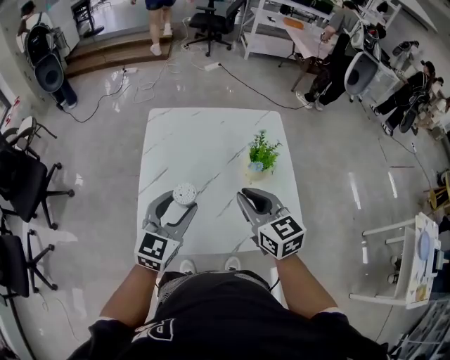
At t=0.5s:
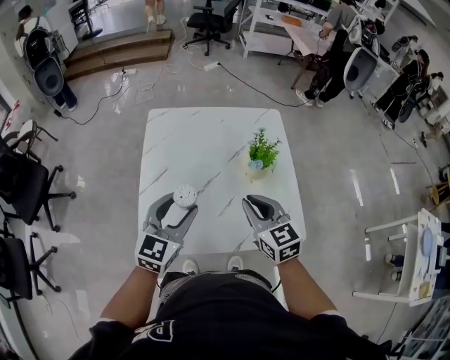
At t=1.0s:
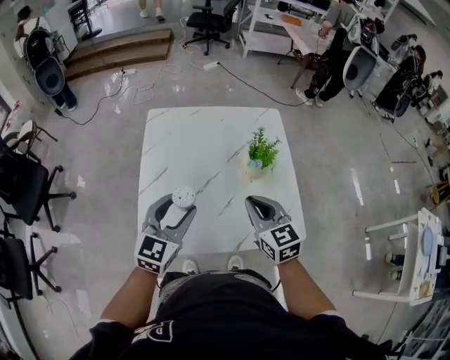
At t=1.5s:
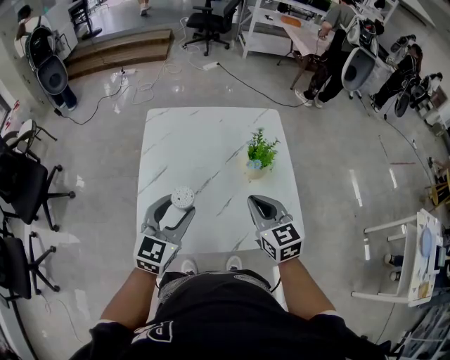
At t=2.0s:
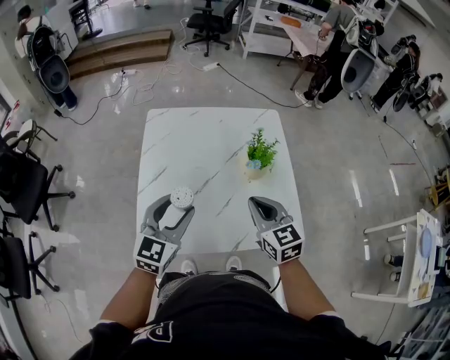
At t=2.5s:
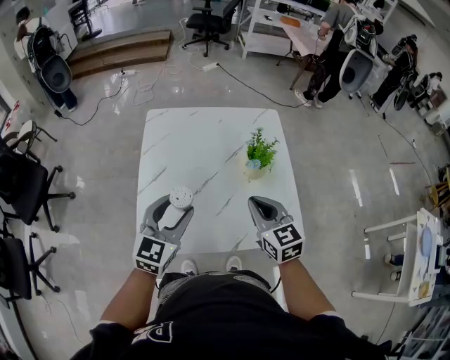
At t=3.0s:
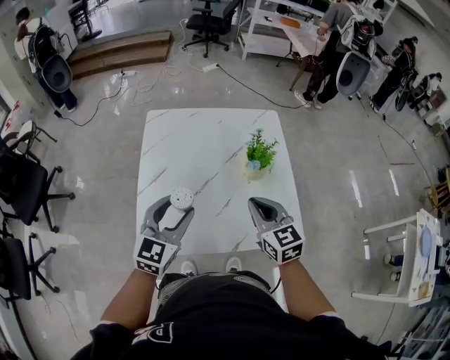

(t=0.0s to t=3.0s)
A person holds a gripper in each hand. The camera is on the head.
t=0.0s - t=1.5s: The right gripper moves approximately 5 cm.
t=1.5s - t=3.0s: Both grippers stay put.

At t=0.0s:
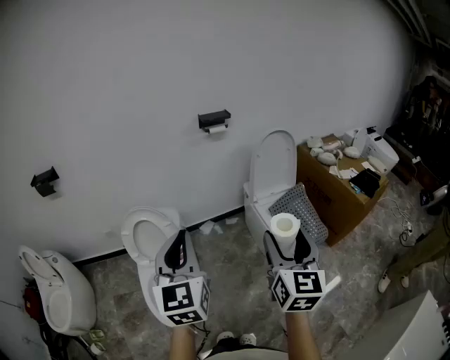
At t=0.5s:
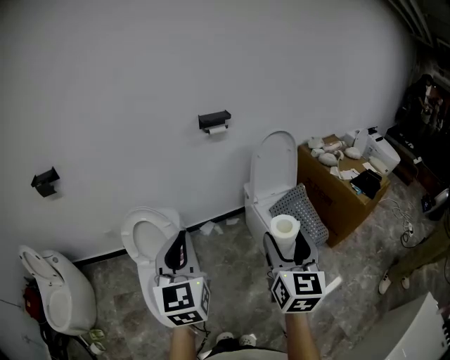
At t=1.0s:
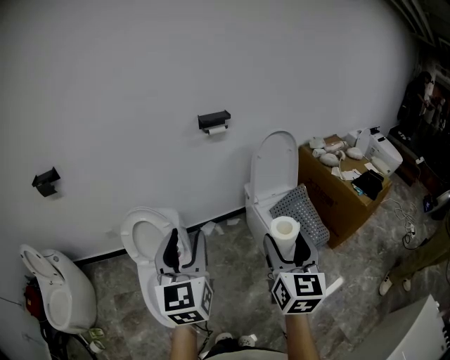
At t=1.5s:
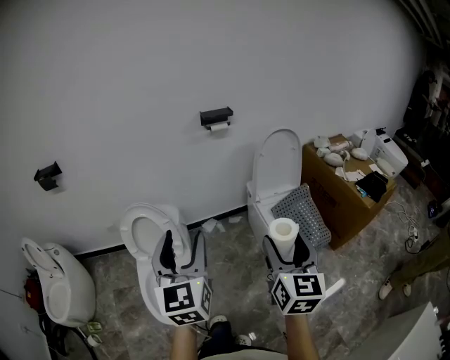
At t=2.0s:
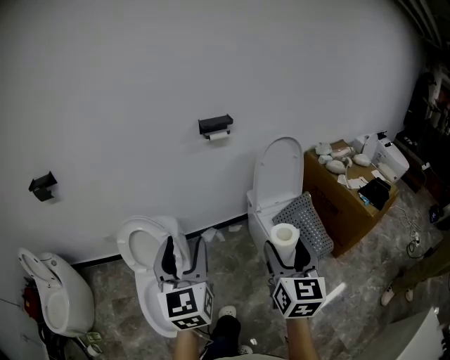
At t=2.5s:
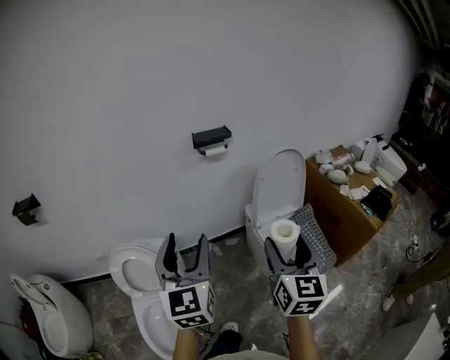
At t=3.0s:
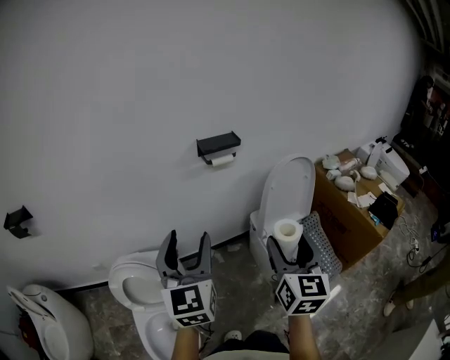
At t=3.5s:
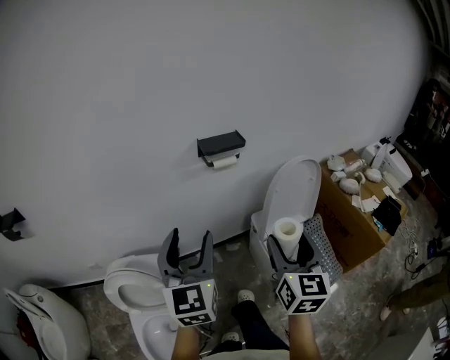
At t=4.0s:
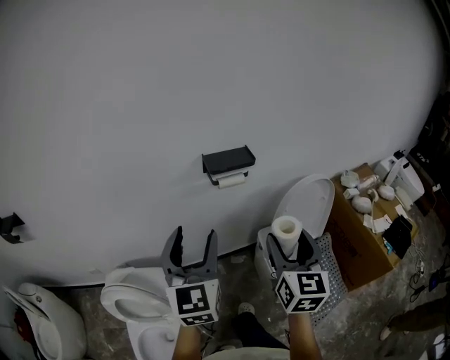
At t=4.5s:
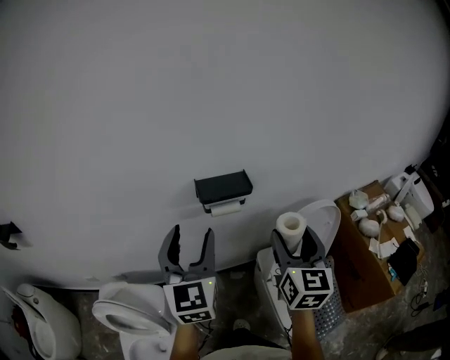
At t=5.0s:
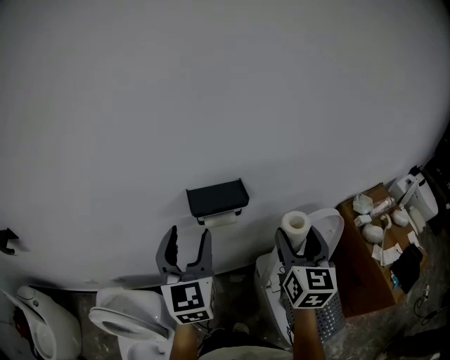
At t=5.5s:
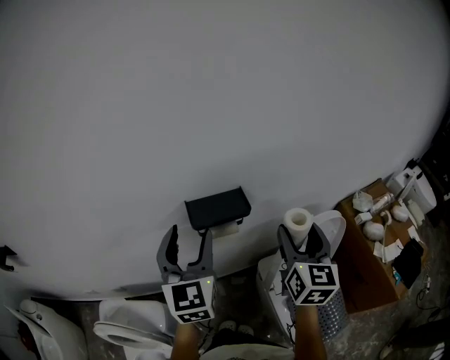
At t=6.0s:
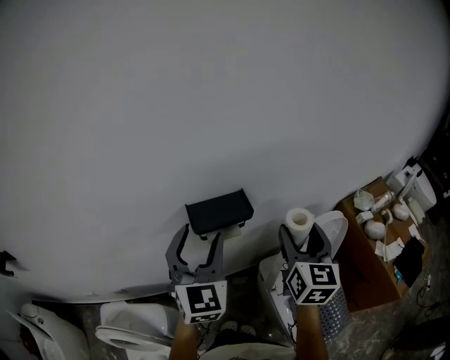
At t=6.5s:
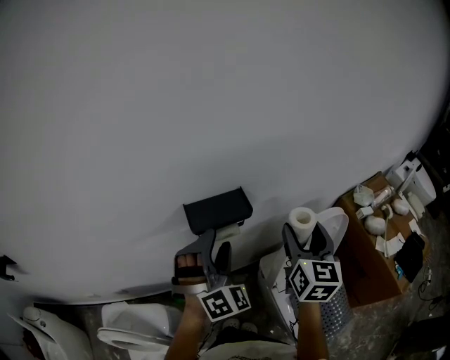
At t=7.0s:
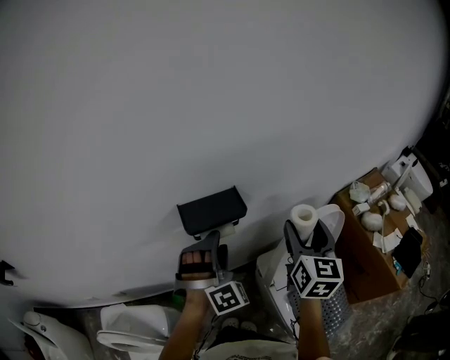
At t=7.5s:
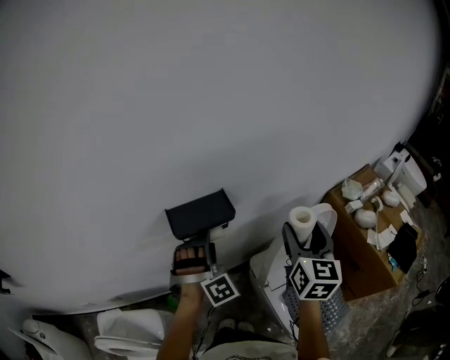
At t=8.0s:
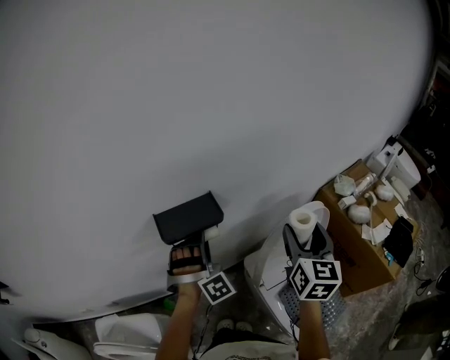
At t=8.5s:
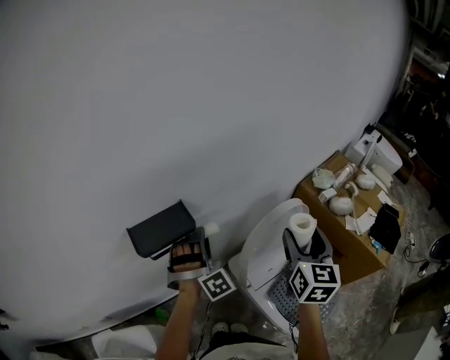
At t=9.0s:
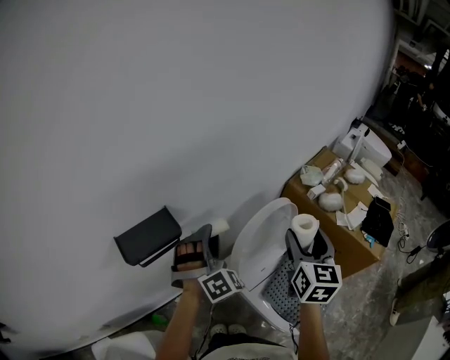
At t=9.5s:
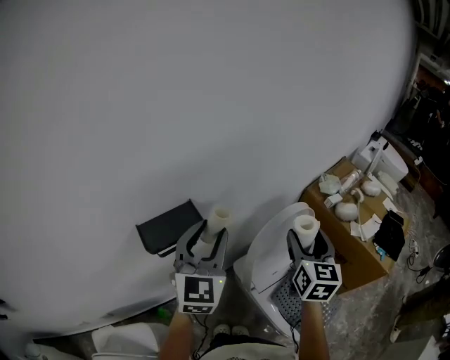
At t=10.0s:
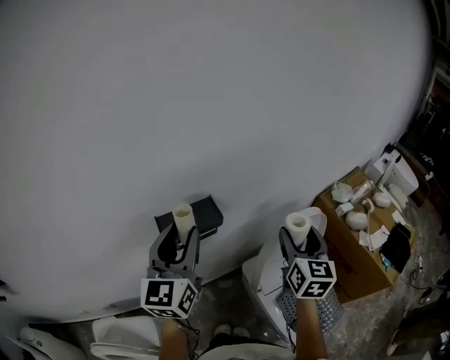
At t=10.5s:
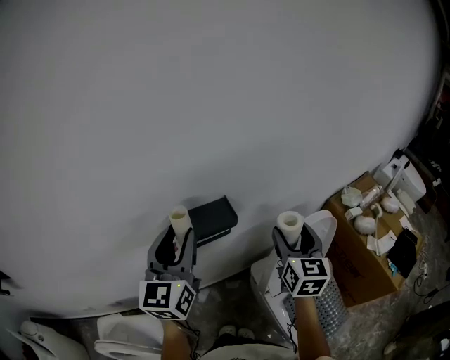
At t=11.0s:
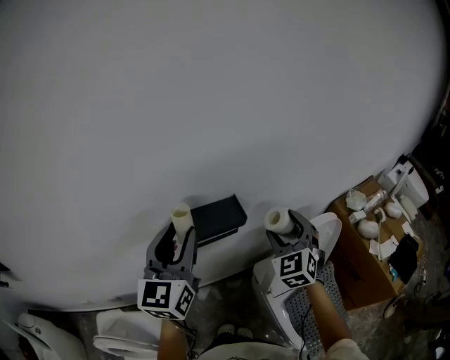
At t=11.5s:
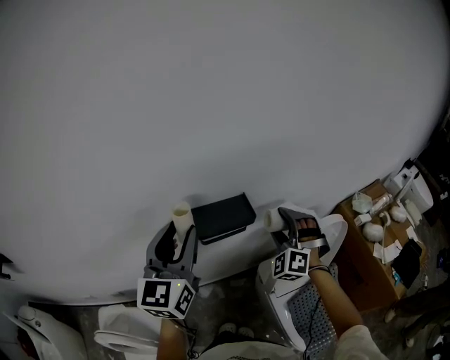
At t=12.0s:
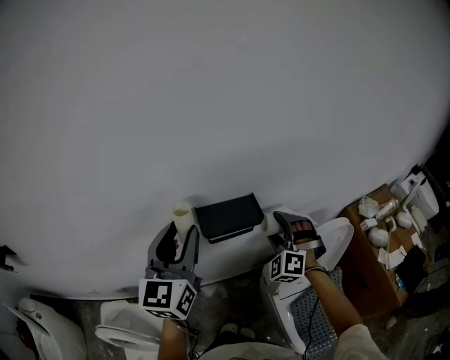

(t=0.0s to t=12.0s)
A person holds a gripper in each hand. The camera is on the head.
t=0.0s - t=2.0s: The grippers both shift forward by approximately 5 cm. The left gripper opens its fingers.
t=2.0s - t=4.0s: The two grippers travel together, forward, some 40 cm.
t=4.0s - t=6.0s: The grippers both shift forward by about 25 cm.
t=6.0s - t=8.0s: The right gripper heads to the right, covering some 10 cm. Meanwhile the left gripper shifts approximately 20 cm downward, to the right and forward, and twists some 60 degrees clockwise, seen from behind.
t=8.0s - t=10.0s: The right gripper travels to the right and back again, some 10 cm each way. The left gripper goes about 15 cm upward, moves approximately 15 cm to the right and comes back, and twists some 80 degrees counterclockwise, seen from behind.
t=10.0s - t=12.0s: The left gripper moves to the left, approximately 10 cm. Meanwhile the right gripper travels to the left and downward by about 20 cm, and rolls counterclockwise, seen from behind, by about 80 degrees.

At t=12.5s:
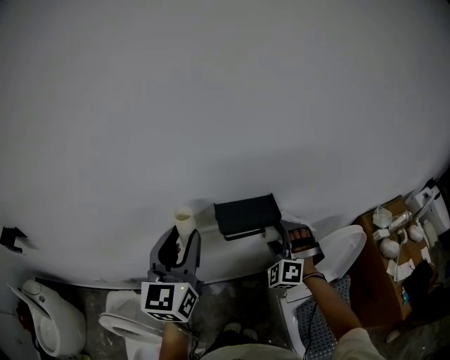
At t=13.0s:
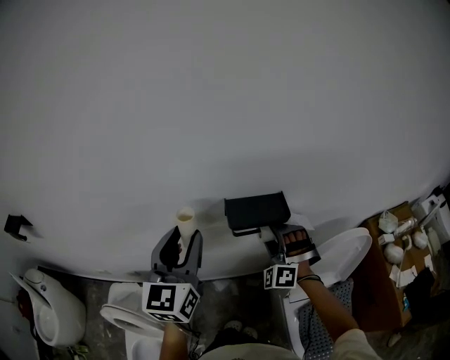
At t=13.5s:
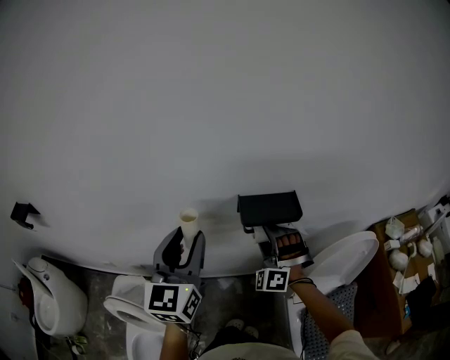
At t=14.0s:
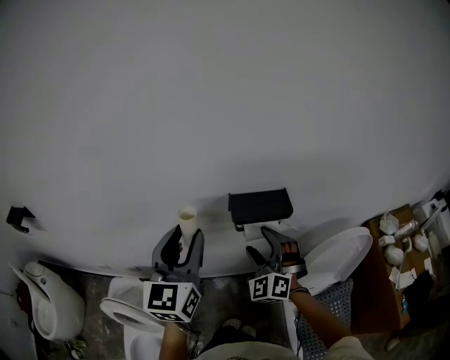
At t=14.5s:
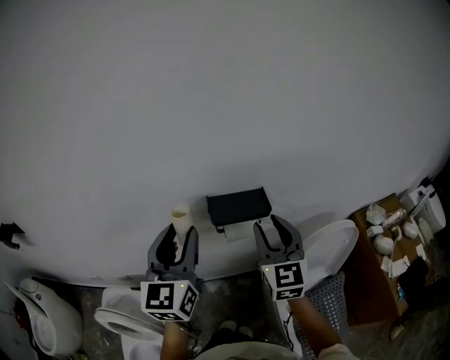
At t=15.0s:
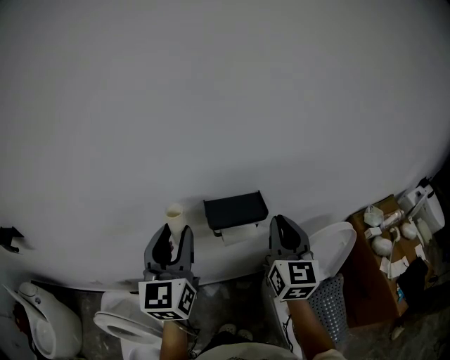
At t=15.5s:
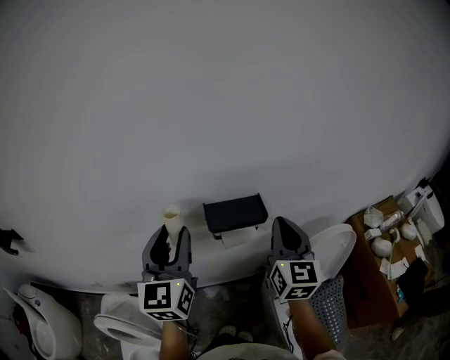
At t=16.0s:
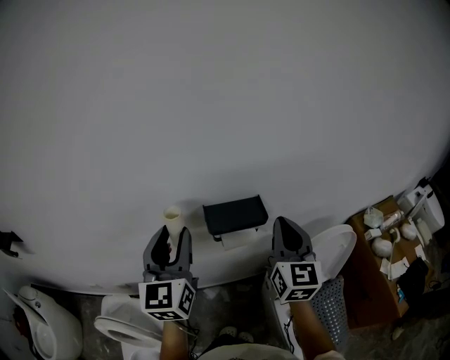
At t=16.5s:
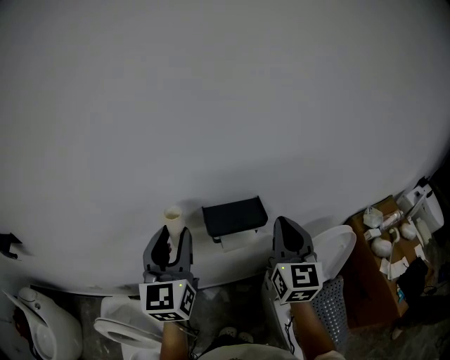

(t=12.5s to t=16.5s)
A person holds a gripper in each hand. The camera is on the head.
t=12.5s - t=14.5s: The right gripper moves upward and backward, some 15 cm, rolls clockwise, seen from behind, by some 60 degrees, and closes its fingers.
t=14.5s - t=16.5s: The right gripper shifts by some 5 cm, and closes its fingers.

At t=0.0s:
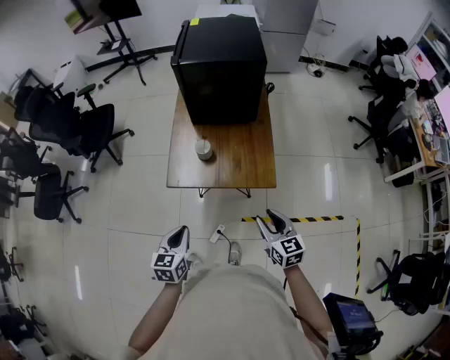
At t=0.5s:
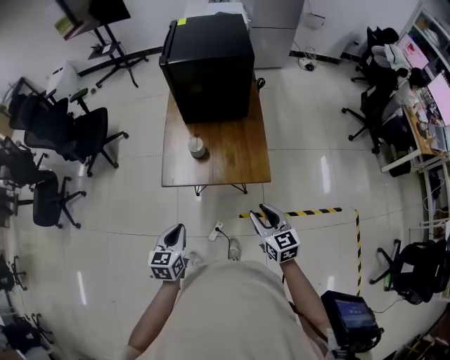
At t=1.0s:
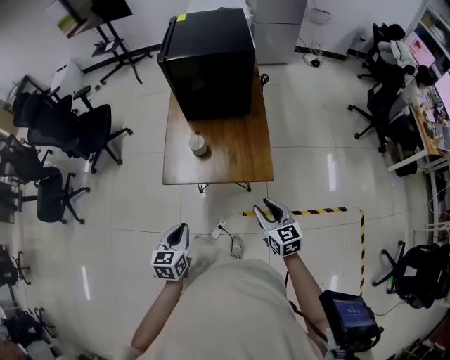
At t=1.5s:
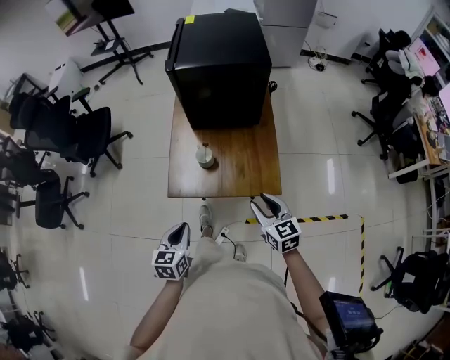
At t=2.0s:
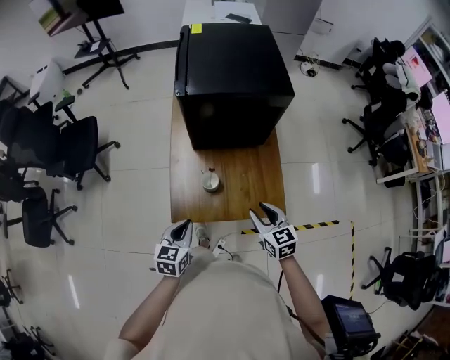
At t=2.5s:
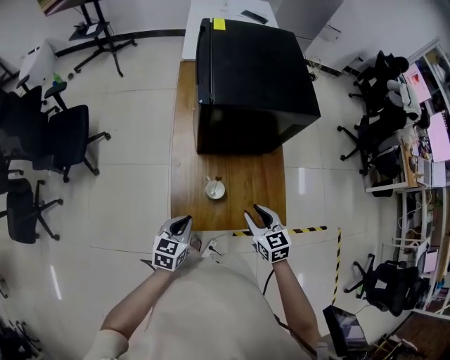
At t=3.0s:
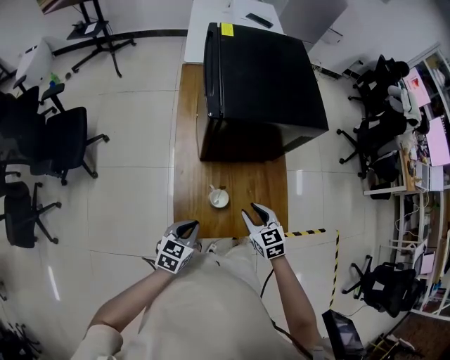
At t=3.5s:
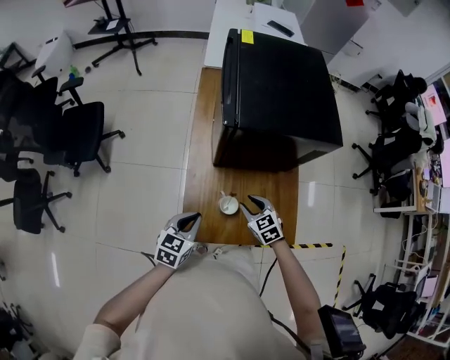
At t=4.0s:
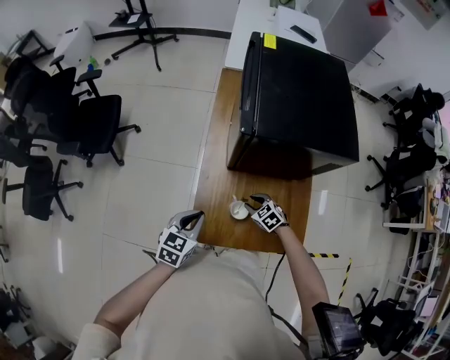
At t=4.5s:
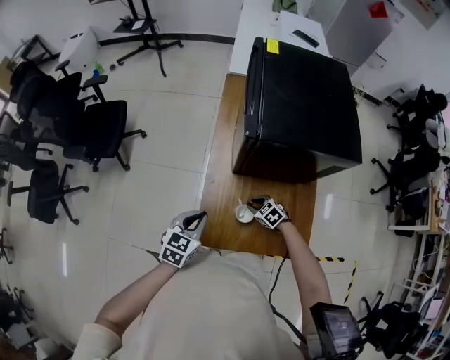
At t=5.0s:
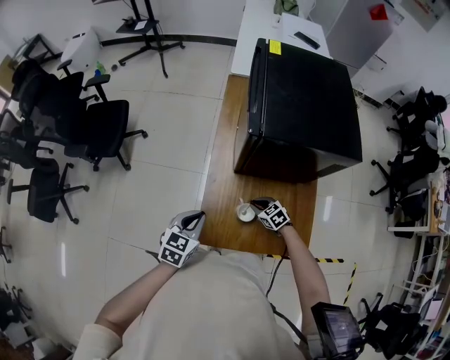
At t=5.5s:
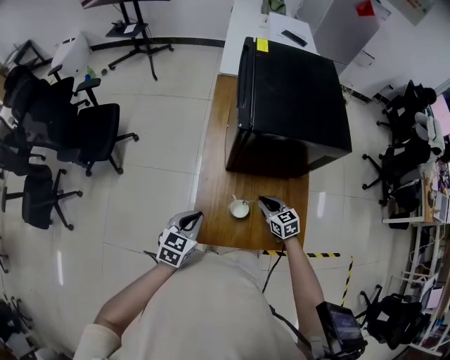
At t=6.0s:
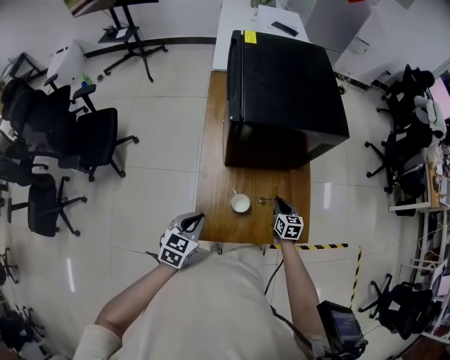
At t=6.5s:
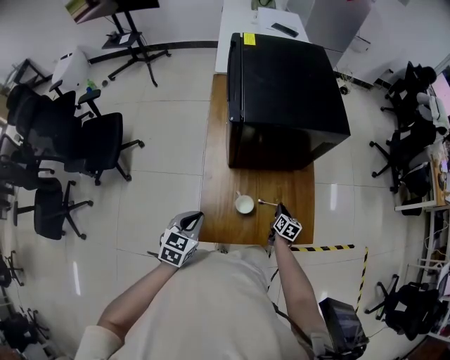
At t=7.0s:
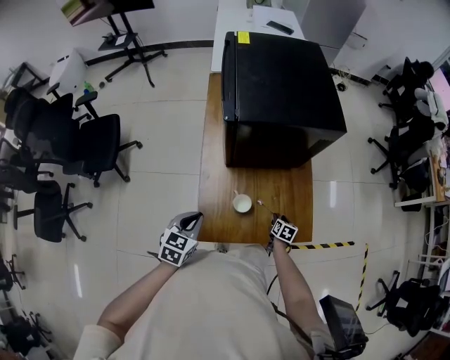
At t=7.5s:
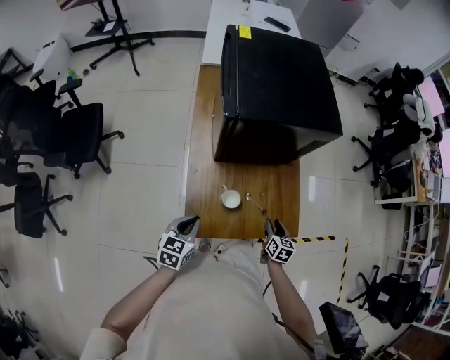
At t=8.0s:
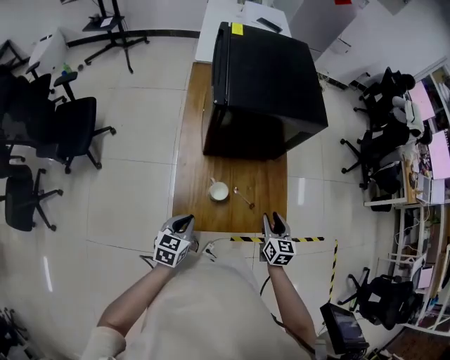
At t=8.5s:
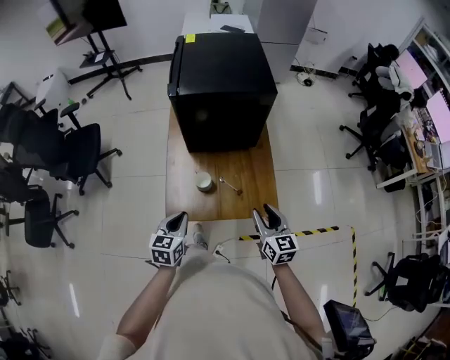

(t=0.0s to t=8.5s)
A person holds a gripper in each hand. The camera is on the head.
t=0.0s - t=2.0s: The two grippers go some 20 cm forward.
t=2.0s - t=4.0s: The right gripper goes approximately 30 cm downward, forward and to the left, and turns by some 40 degrees, while the left gripper heads forward and to the left, covering roughly 15 cm.
t=4.0s - t=6.5s: The right gripper moves roughly 15 cm, twists roughly 60 degrees clockwise, seen from behind, and closes up.
t=6.5s - t=8.5s: The right gripper is displaced upward and backward by about 30 cm, turns by roughly 40 degrees, and opens its fingers; the left gripper heads to the right and backward, covering about 15 cm.
